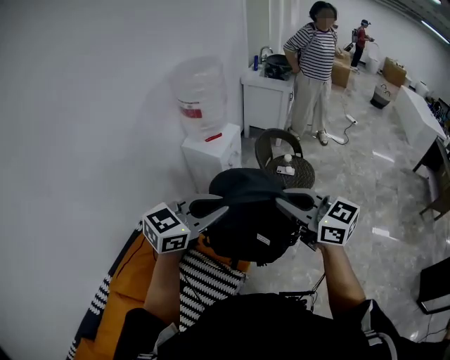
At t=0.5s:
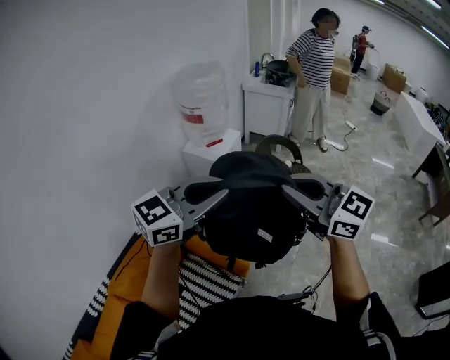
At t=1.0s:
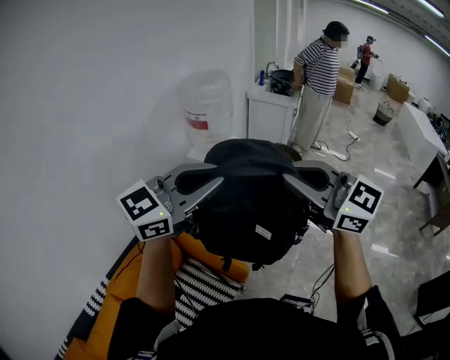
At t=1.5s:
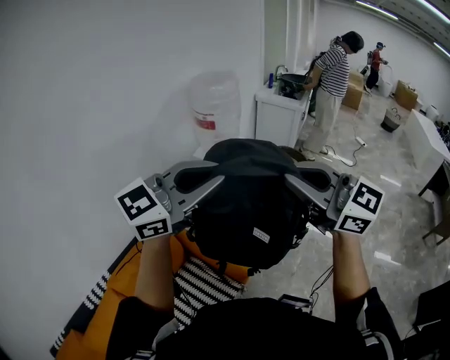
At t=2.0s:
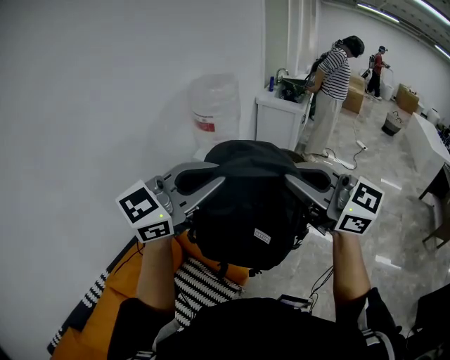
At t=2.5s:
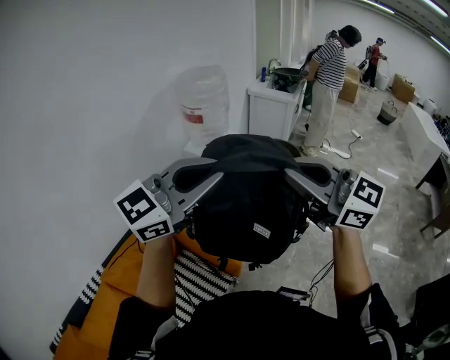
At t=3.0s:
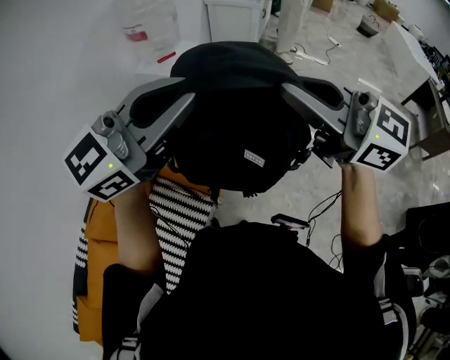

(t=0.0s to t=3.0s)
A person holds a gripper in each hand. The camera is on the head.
t=0.0s - t=1.5s: The grippers both shift upward by some 15 cm. The left gripper changes its angle by some 20 degrees. The right gripper turns by roughly 20 degrees.
t=1.5s - t=3.0s: Both grippers travel together to the right, about 10 cm.

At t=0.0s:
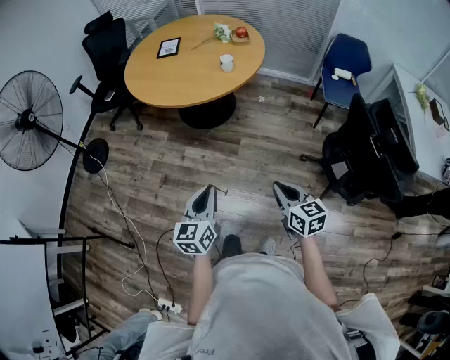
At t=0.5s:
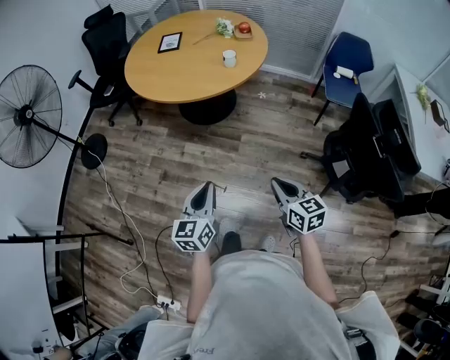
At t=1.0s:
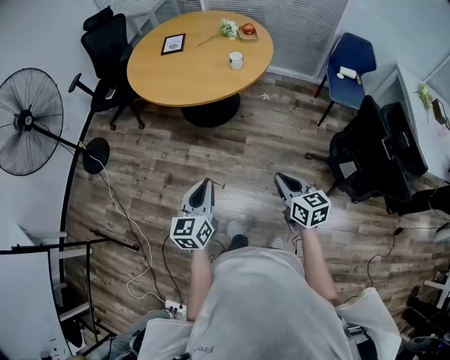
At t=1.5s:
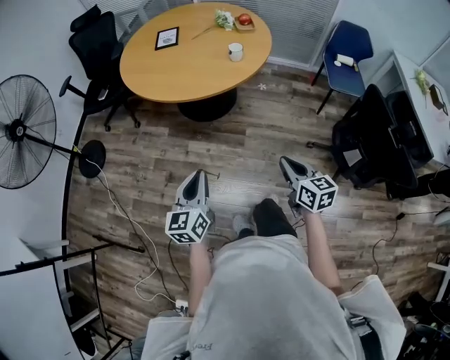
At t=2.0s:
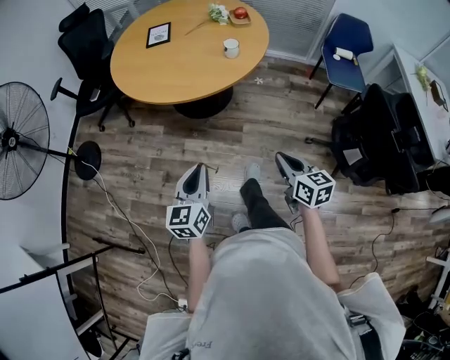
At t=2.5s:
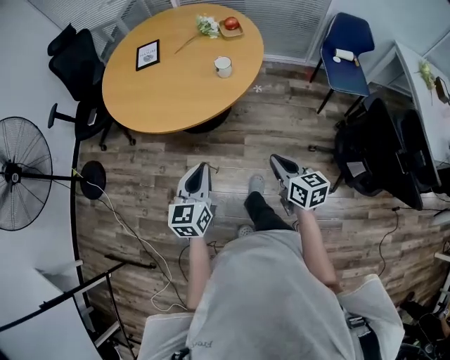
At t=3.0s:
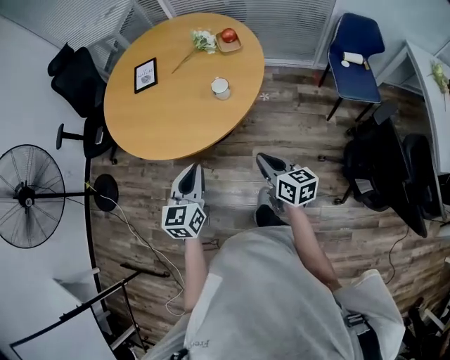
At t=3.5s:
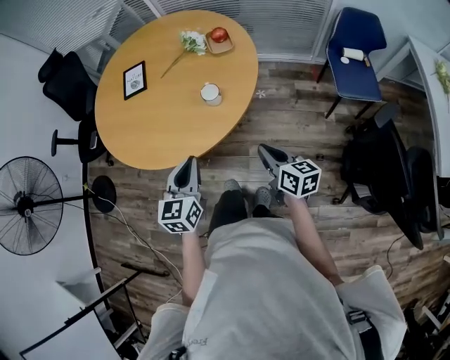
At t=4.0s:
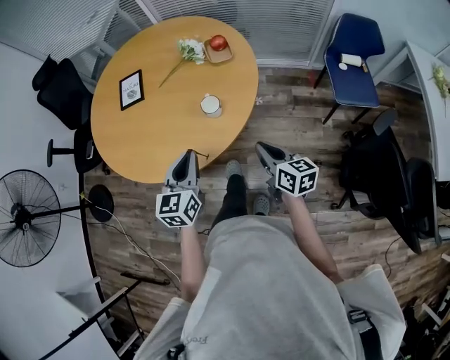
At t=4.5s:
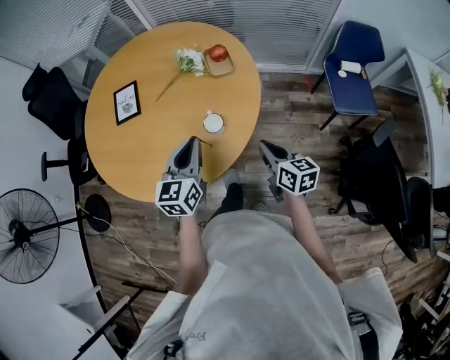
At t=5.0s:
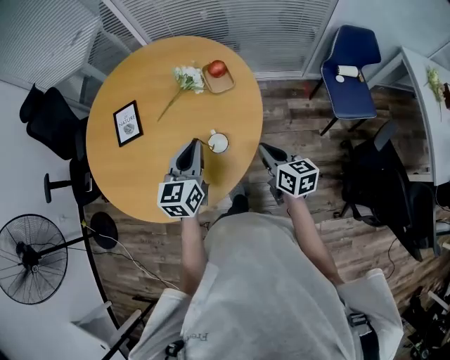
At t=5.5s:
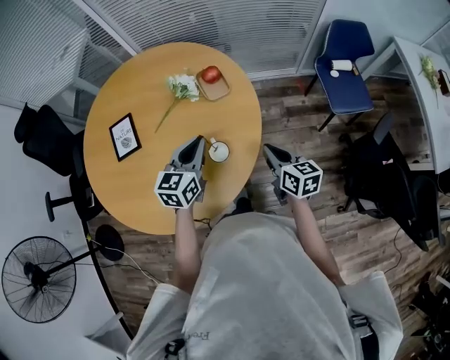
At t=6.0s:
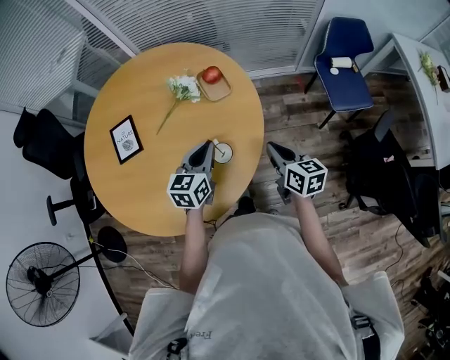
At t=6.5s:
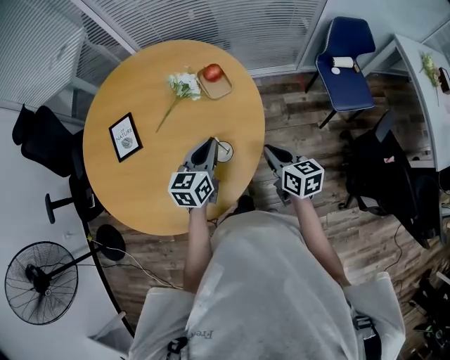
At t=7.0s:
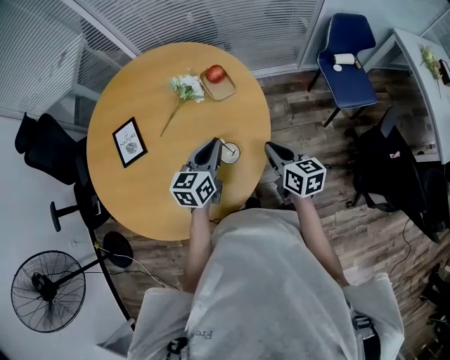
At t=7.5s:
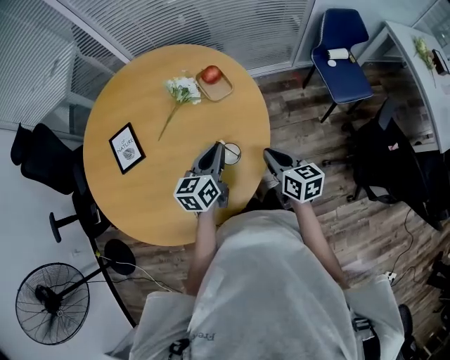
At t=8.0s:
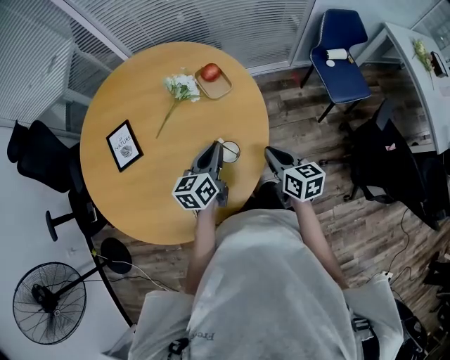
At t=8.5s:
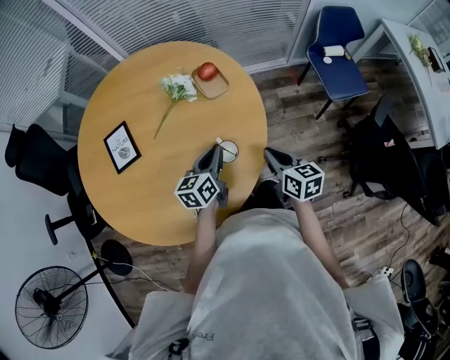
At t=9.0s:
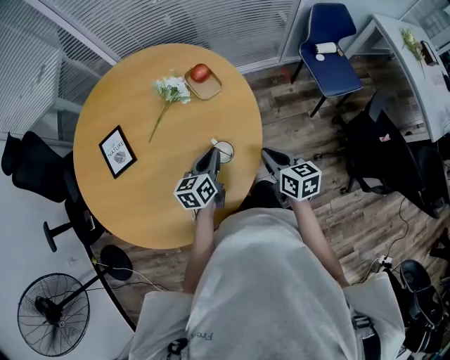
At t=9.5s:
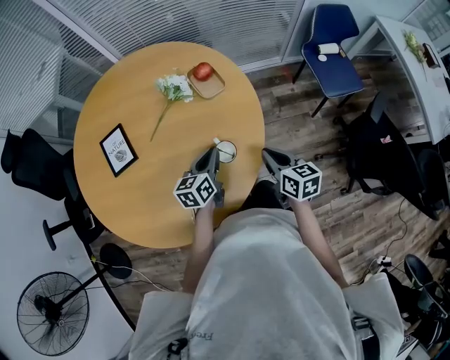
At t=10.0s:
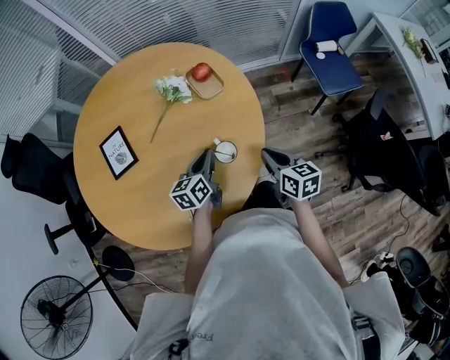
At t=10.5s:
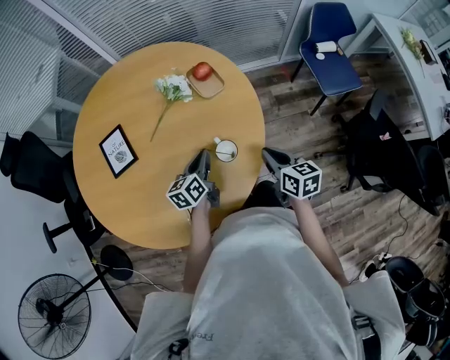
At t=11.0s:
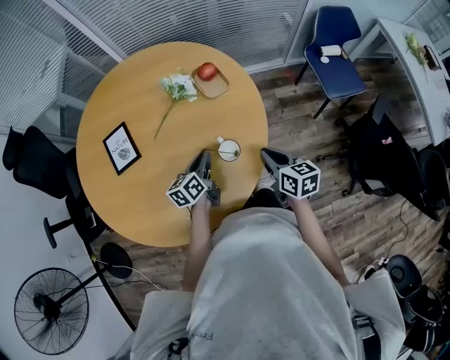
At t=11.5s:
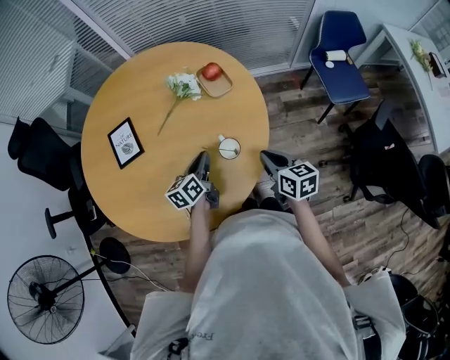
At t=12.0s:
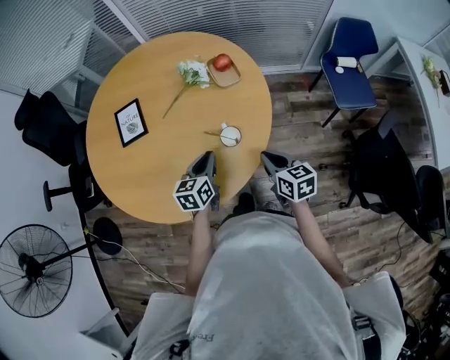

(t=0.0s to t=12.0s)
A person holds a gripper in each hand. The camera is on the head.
t=0.0s - t=2.0s: The grippers both shift forward and to the left by about 15 cm.
t=2.0s - t=4.0s: Both grippers move forward, roughly 40 cm.
t=4.0s - t=6.0s: The two grippers go some 20 cm forward. The left gripper rotates roughly 20 degrees.
t=6.0s - t=8.0s: The right gripper moves approximately 5 cm.
t=8.0s - t=10.0s: The left gripper goes about 5 cm downward.
t=10.0s - t=12.0s: The right gripper moves some 5 cm, while the left gripper moves backward, about 10 cm.

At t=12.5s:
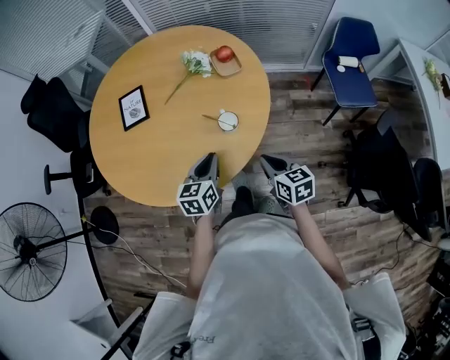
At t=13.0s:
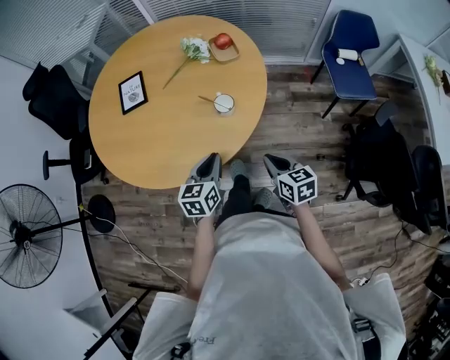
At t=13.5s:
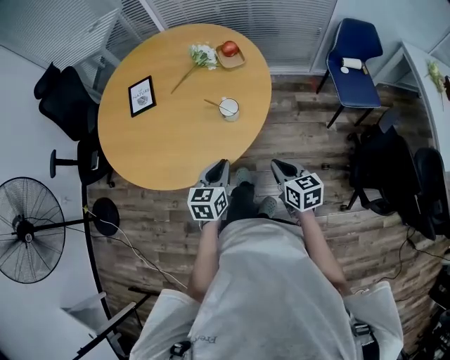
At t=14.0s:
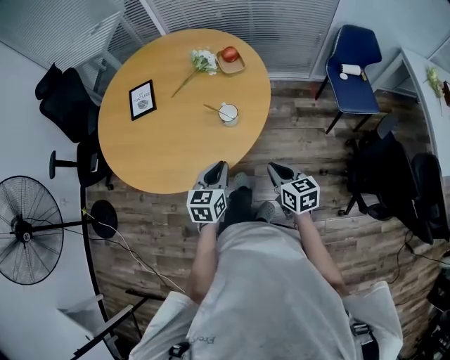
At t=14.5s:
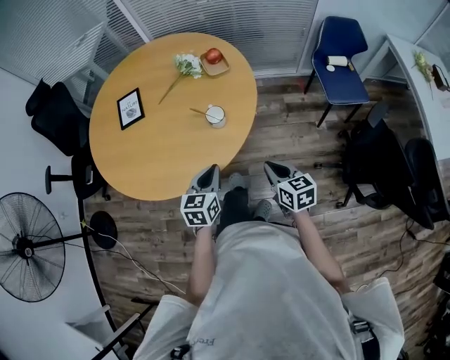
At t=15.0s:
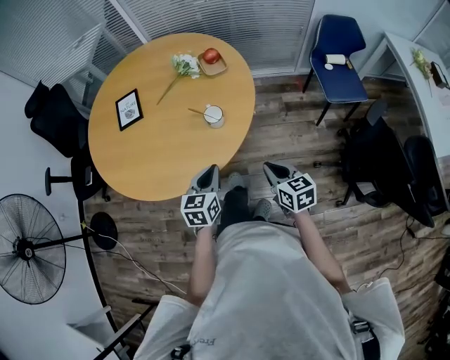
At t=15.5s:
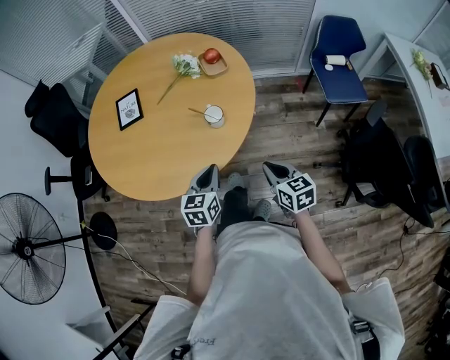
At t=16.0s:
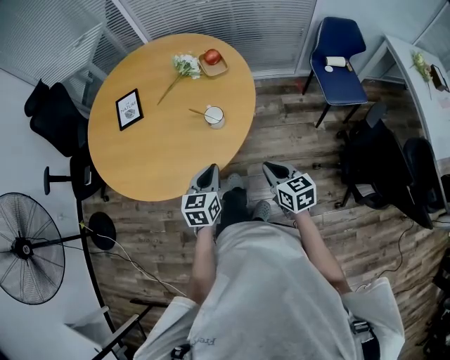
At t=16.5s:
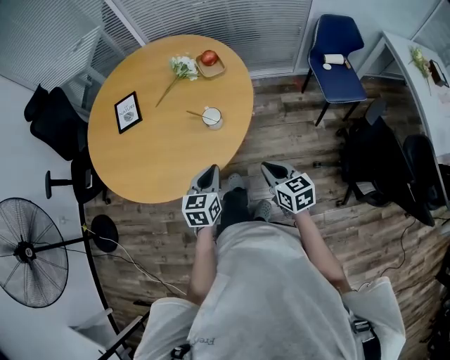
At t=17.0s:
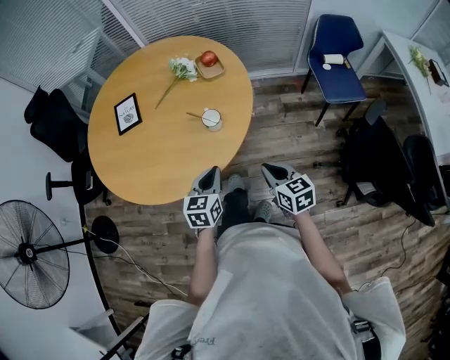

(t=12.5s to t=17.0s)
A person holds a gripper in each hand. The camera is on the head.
t=12.5s - t=14.5s: The grippers both shift backward by roughly 10 cm.
t=14.5s - t=17.0s: There are only small adjustments of the grippers.

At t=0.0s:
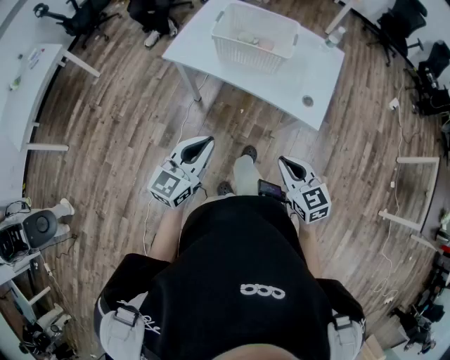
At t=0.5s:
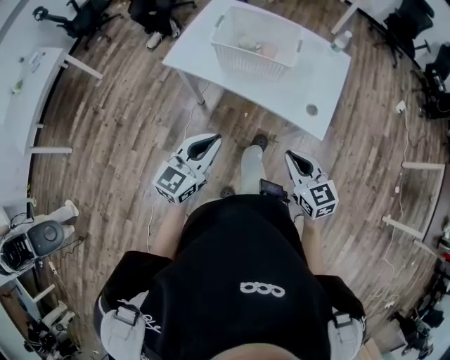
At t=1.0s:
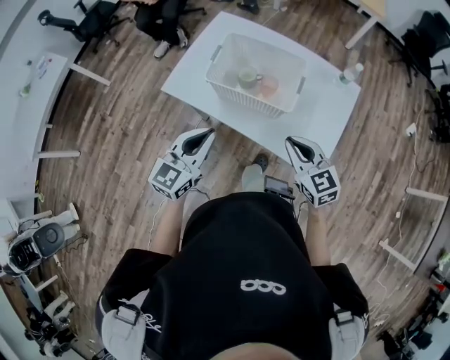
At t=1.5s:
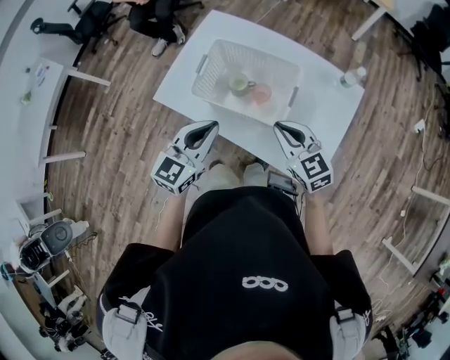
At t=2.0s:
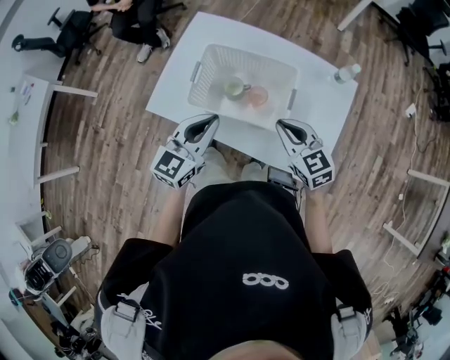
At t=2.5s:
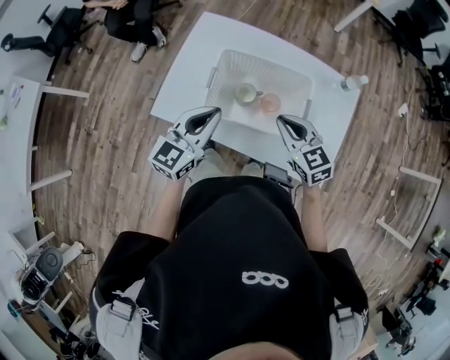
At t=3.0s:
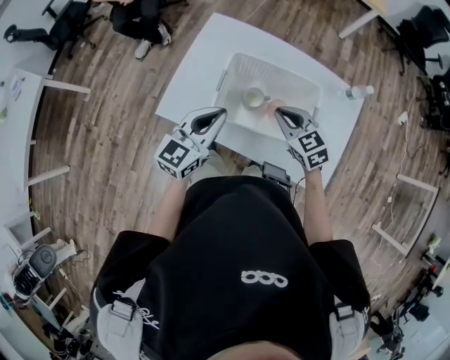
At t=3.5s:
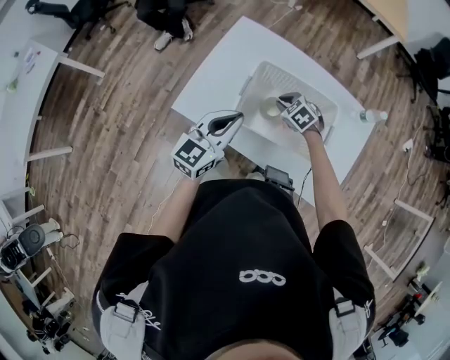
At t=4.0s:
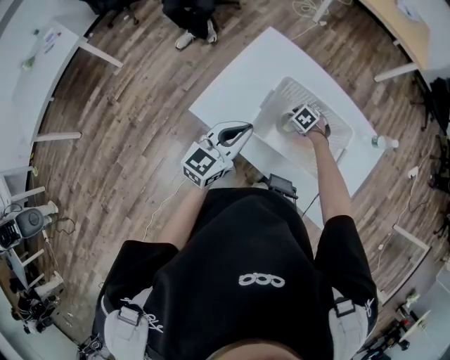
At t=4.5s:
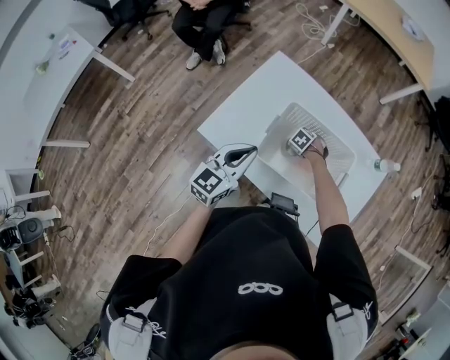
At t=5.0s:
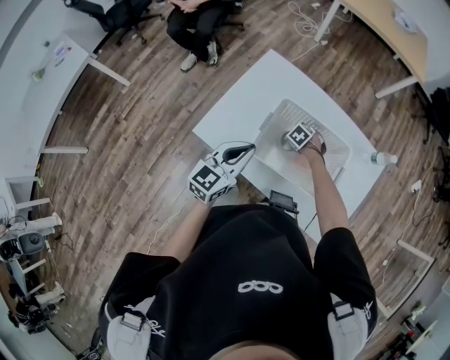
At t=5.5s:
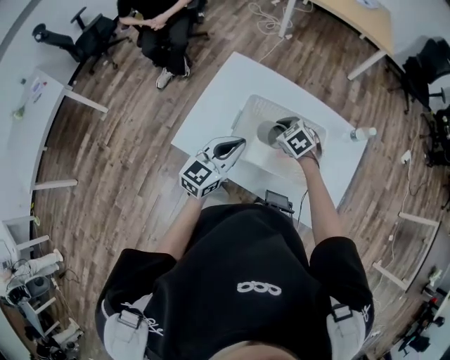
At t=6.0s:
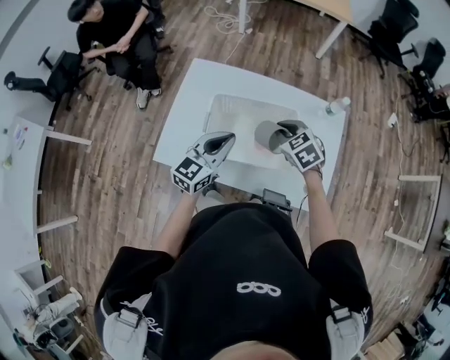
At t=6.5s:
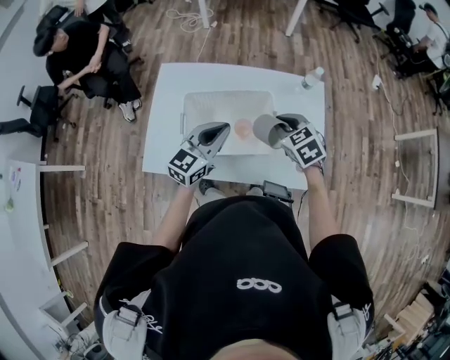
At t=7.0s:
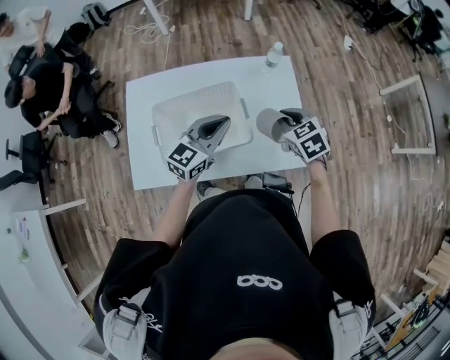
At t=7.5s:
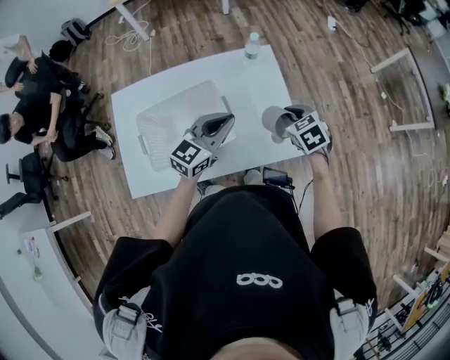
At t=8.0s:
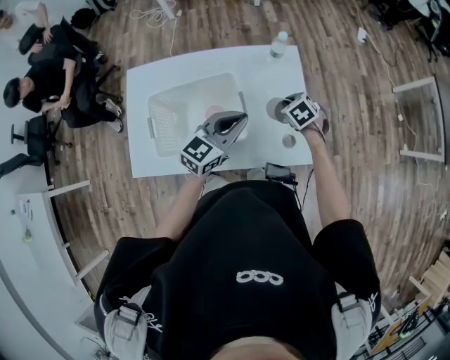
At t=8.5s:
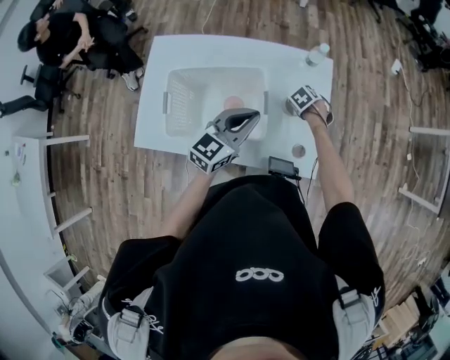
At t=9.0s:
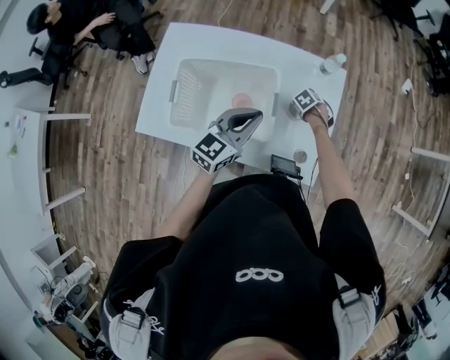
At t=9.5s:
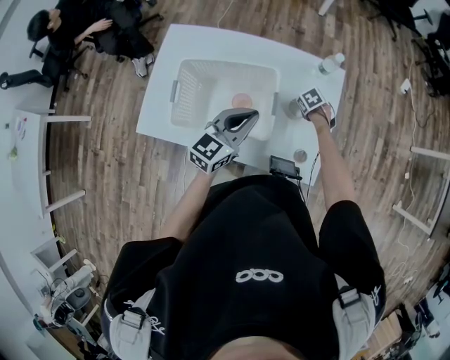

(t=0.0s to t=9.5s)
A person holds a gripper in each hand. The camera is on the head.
t=0.0s - t=2.0s: The pair of grippers is taken forward, some 40 cm.
t=2.0s - t=4.0s: The right gripper travels downward by some 25 cm, and points its fingers approximately 50 degrees further downward, while the left gripper changes place by approximately 15 cm.
t=4.0s - t=5.5s: The right gripper goes approximately 15 cm upward, and rotates approximately 20 degrees.
t=5.5s - t=7.5s: The left gripper shifts by approximately 30 cm, and swivels some 40 degrees. Meanwhile the right gripper moves roughly 40 cm, and rotates around the line of its fingers by approximately 40 degrees, clockwise from behind.
t=7.5s - t=9.5s: The right gripper shifts some 25 cm downward, and rotates about 30 degrees. Meanwhile the left gripper ends up approximately 5 cm from where it was, and rotates roughly 30 degrees.
